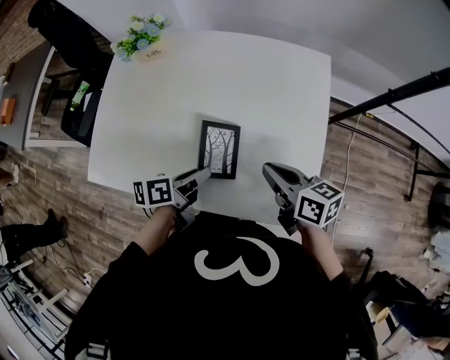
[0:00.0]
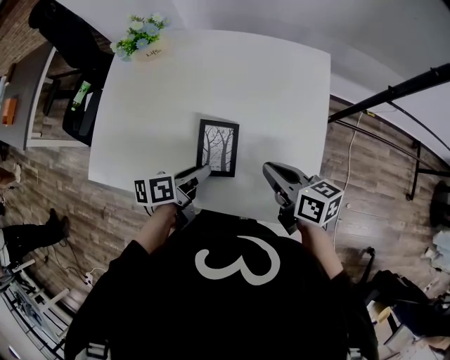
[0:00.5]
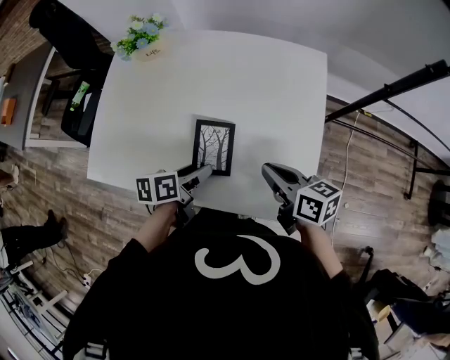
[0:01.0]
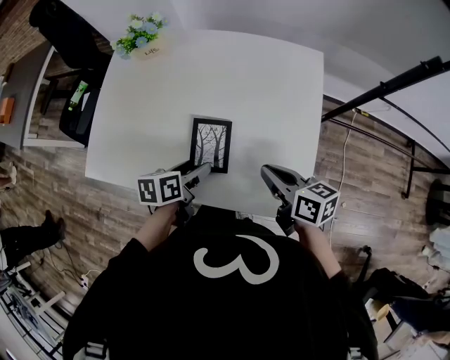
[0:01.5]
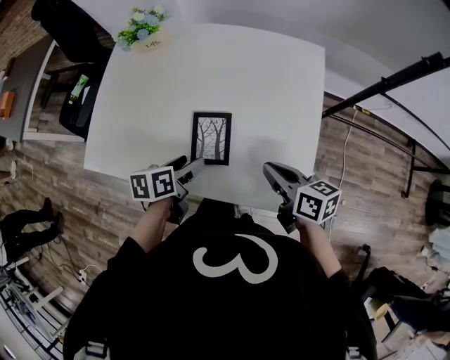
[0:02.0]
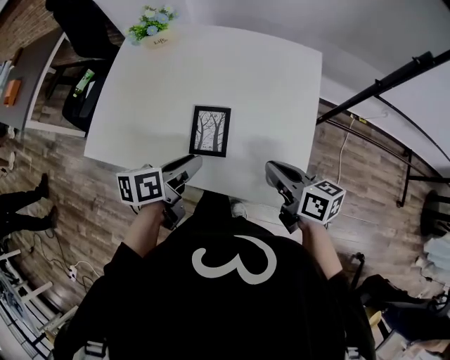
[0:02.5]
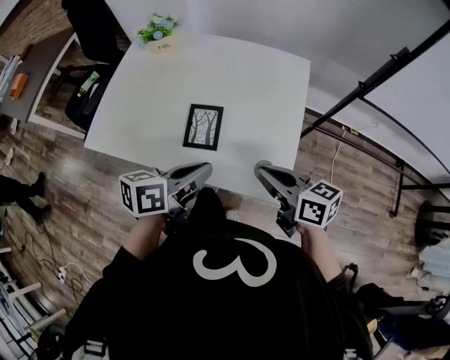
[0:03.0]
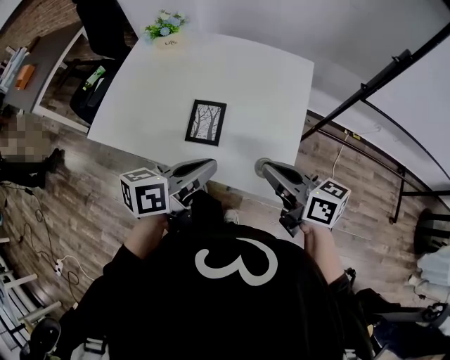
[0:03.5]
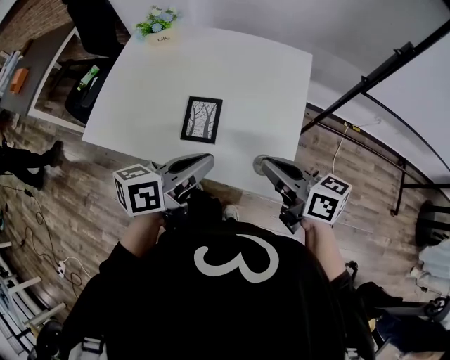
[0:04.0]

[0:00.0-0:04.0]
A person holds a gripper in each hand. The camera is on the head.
0:00.0 to 0:02.0: The left gripper opens up.
0:02.0 to 0:04.0: The left gripper is displaced upward, to the right and backward by roughly 20 cm, turns by roughly 30 degrees, and closes; the right gripper is displaced upward and backward by some 10 cm.

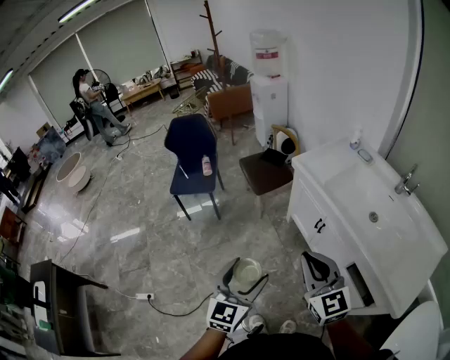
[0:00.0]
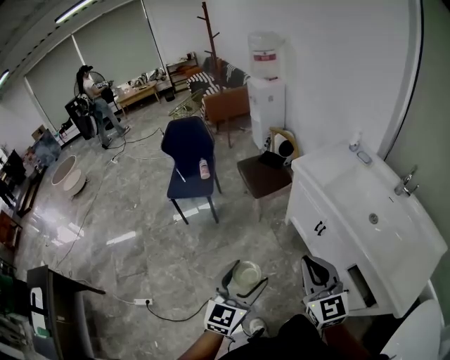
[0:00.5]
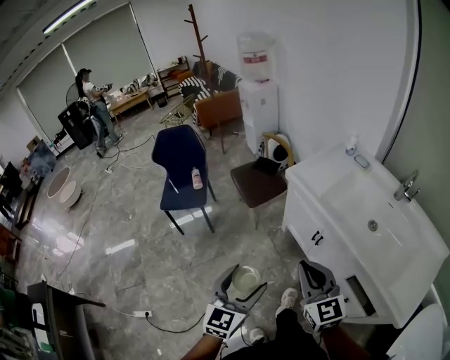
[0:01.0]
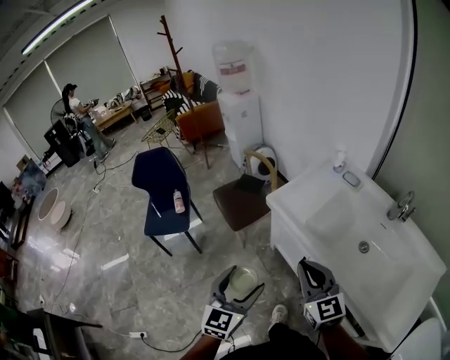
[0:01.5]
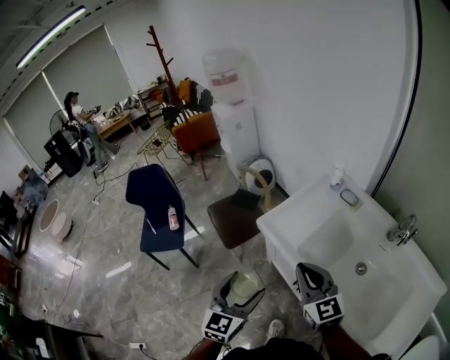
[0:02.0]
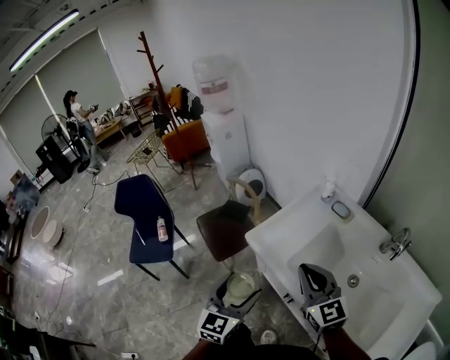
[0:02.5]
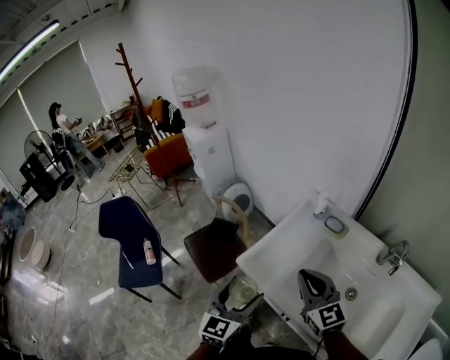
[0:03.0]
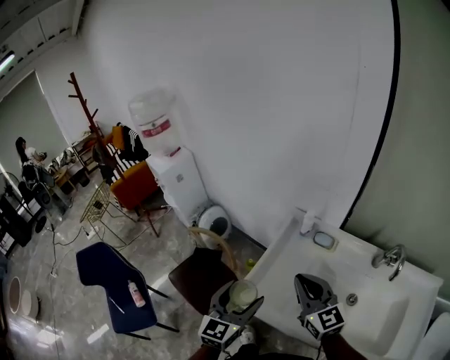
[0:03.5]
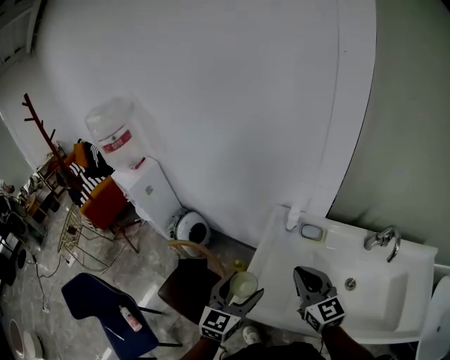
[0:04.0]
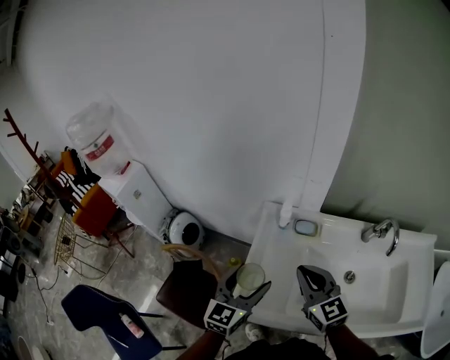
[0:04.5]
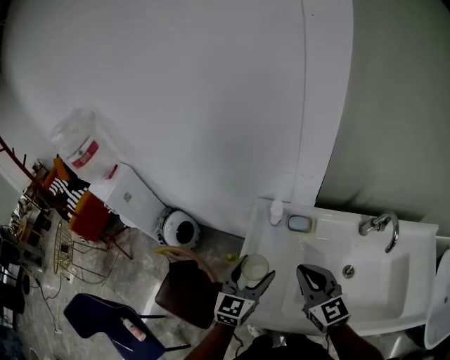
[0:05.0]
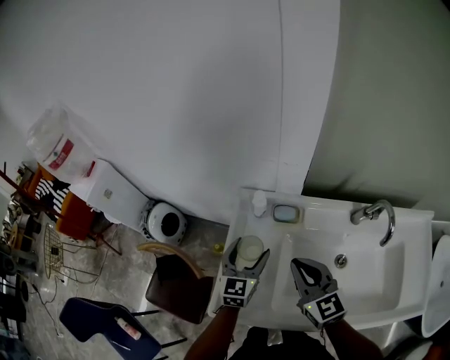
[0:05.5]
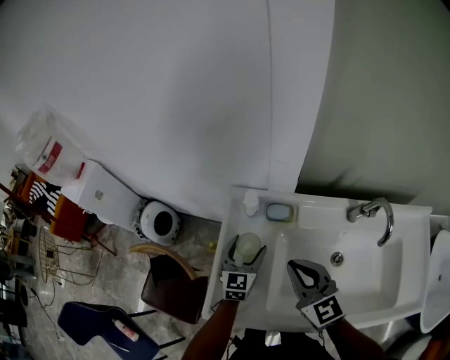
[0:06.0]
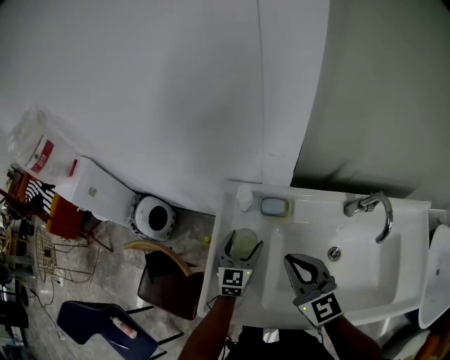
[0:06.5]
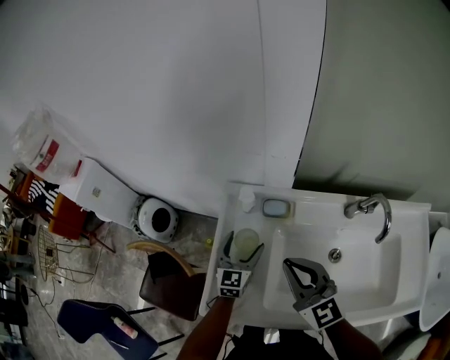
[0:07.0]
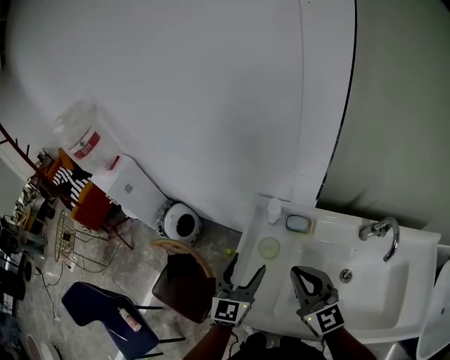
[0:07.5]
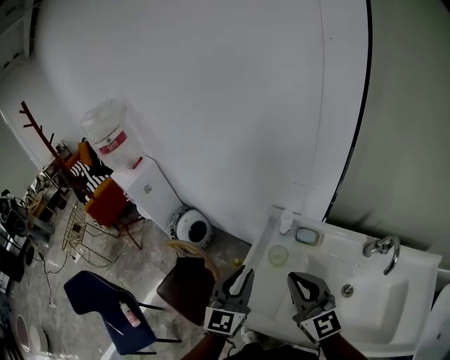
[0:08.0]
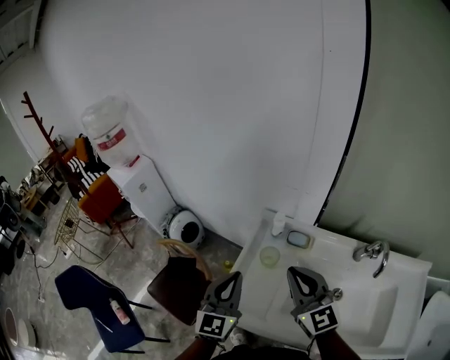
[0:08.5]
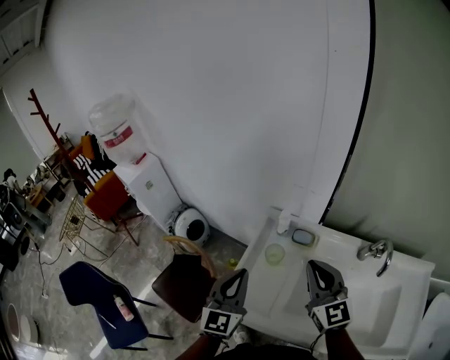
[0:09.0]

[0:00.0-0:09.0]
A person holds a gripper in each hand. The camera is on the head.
0:00.0 to 0:02.0: The right gripper is displaced forward and to the right by approximately 35 cm. Meanwhile the left gripper is displaced forward by some 30 cm.
0:02.0 to 0:04.5: The right gripper changes place by approximately 25 cm, and rotates approximately 30 degrees; the left gripper shifts by some 35 cm, and swivels approximately 40 degrees.
0:04.5 to 0:07.0: The left gripper moves downward, forward and to the right, about 20 cm, while the right gripper moves roughly 5 cm.
0:07.0 to 0:09.0: The right gripper moves upward, some 5 cm. The left gripper travels upward, backward and to the left by roughly 25 cm, changes its angle by some 20 degrees, and closes.

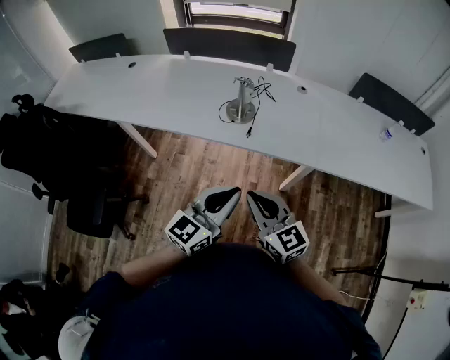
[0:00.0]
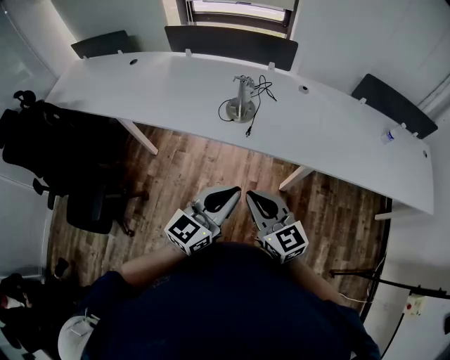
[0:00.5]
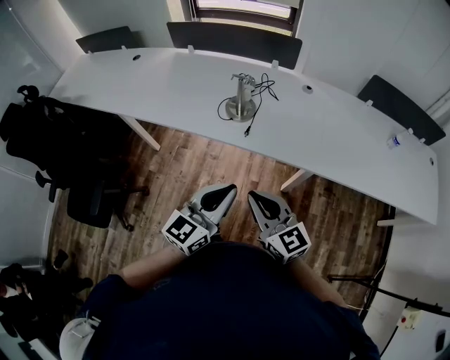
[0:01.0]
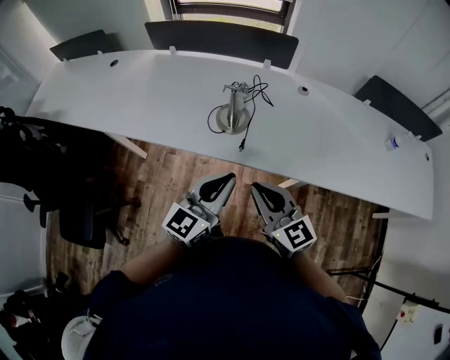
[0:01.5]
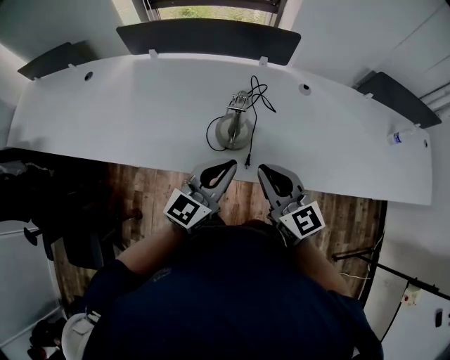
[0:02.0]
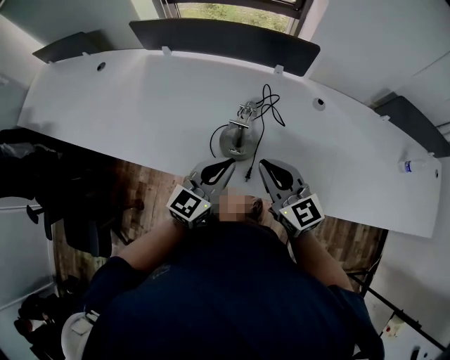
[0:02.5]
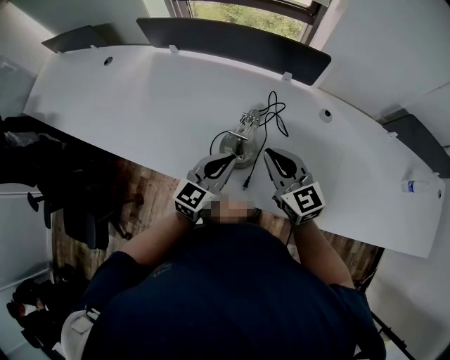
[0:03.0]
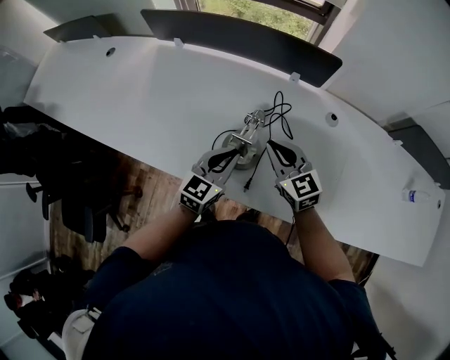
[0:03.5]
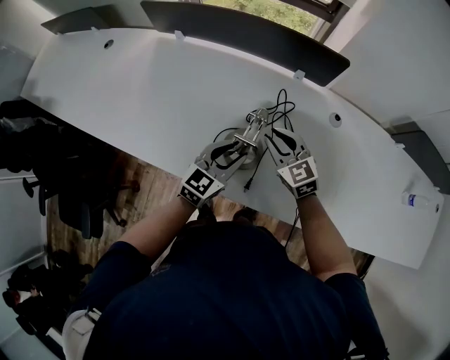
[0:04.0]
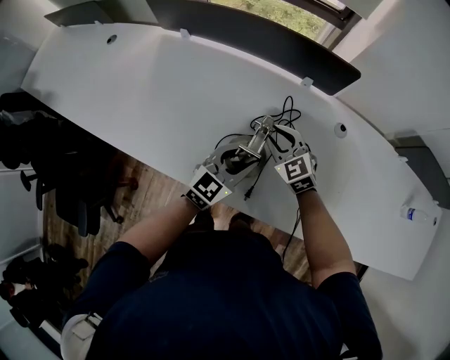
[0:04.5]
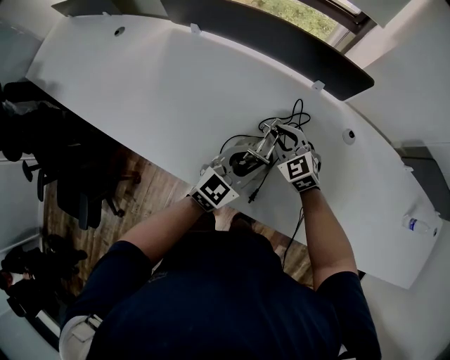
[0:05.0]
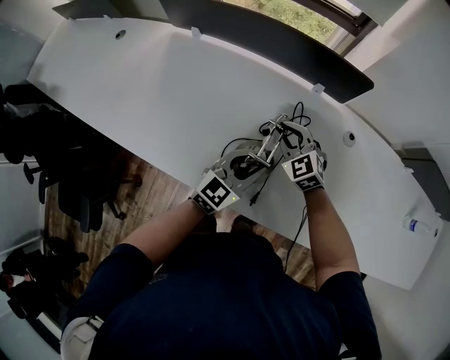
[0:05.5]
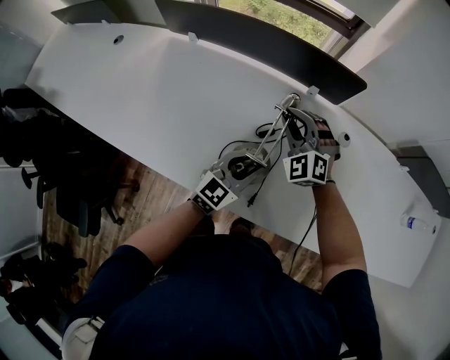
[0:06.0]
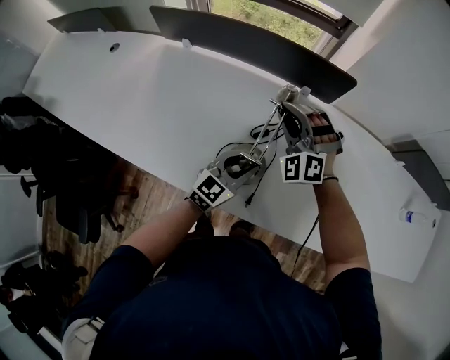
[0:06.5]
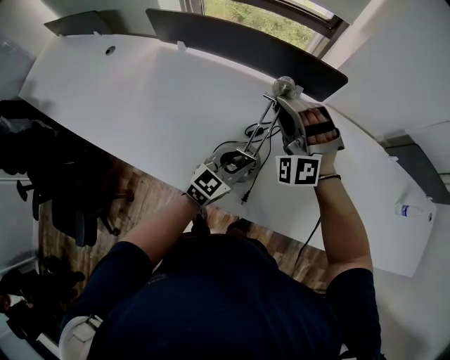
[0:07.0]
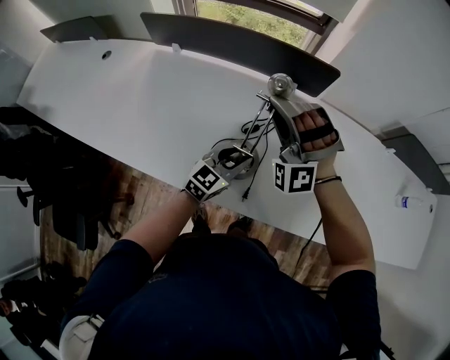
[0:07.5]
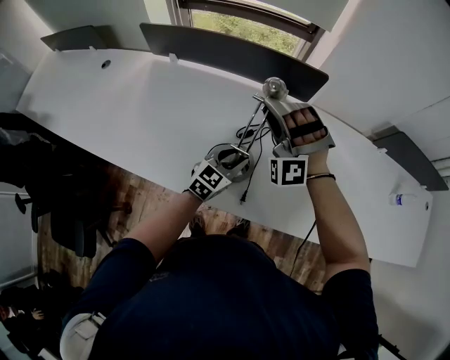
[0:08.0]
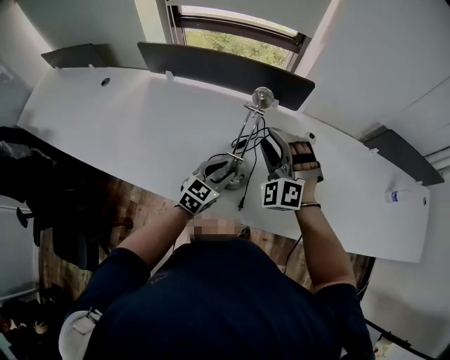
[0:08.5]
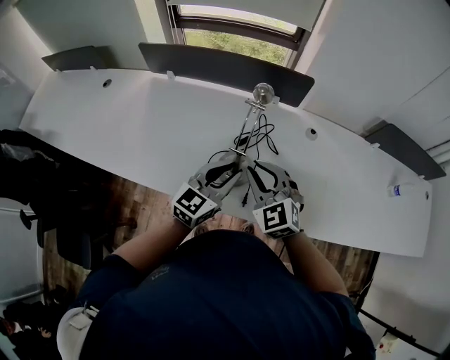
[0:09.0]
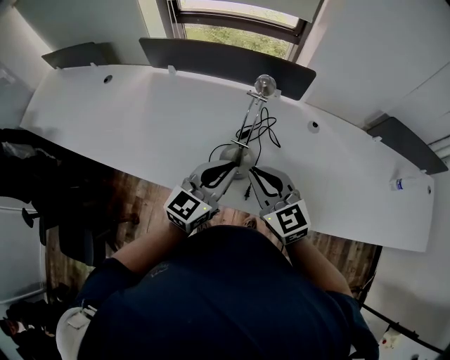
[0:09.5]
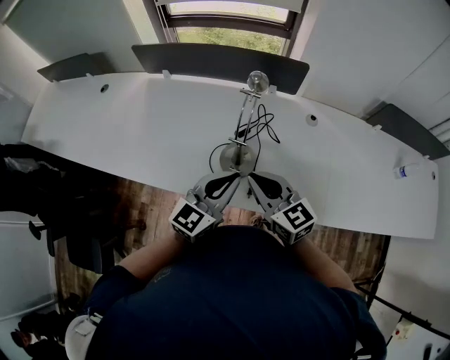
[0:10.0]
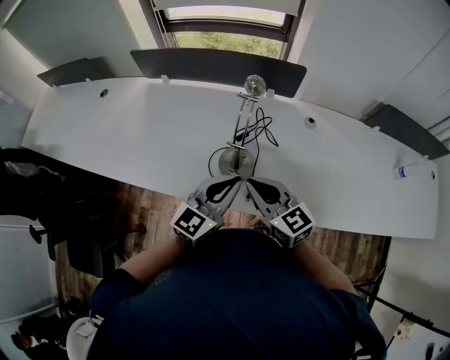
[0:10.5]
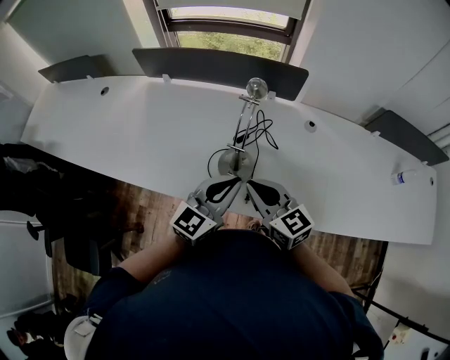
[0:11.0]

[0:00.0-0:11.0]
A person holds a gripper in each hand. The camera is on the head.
0:00.0 to 0:02.0: The grippers both shift forward by some 30 cm.
0:02.0 to 0:03.5: Both grippers travel together forward and downward, some 20 cm. The left gripper turns by roughly 20 degrees.
0:03.5 to 0:05.5: The right gripper heads forward and downward, covering about 15 cm, and swivels about 30 degrees. The left gripper opens.
0:05.5 to 0:07.5: The right gripper moves upward, roughly 20 cm, and rotates around the line of its fingers by some 60 degrees, counterclockwise from behind.
0:07.5 to 0:09.0: The right gripper heads backward, covering approximately 15 cm, and rolls clockwise, seen from behind, by approximately 60 degrees; the left gripper shifts about 15 cm upward and backward.
0:09.0 to 0:11.0: The right gripper shifts approximately 5 cm backward, and changes its angle by roughly 40 degrees. The left gripper shifts by about 5 cm, and closes up.

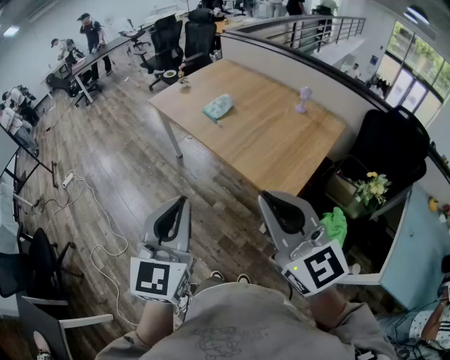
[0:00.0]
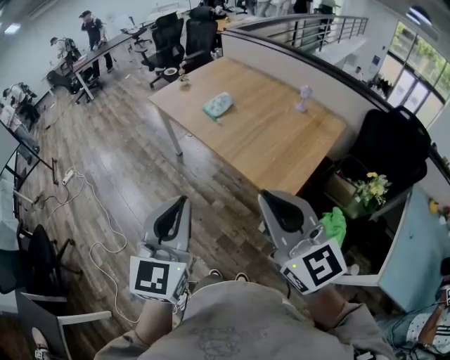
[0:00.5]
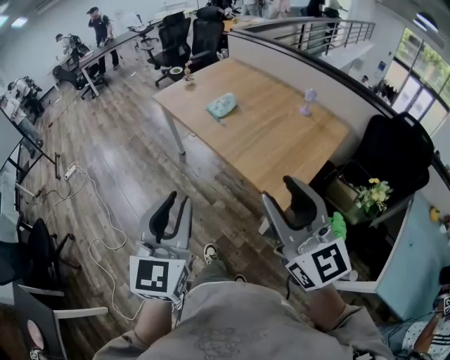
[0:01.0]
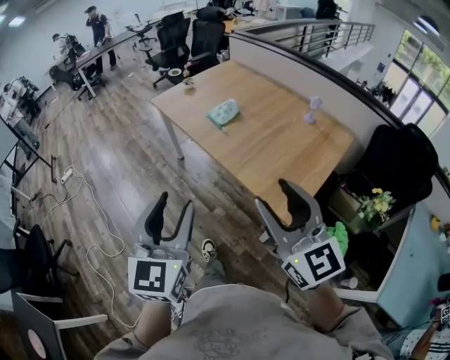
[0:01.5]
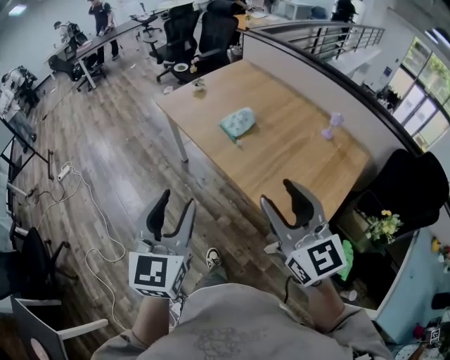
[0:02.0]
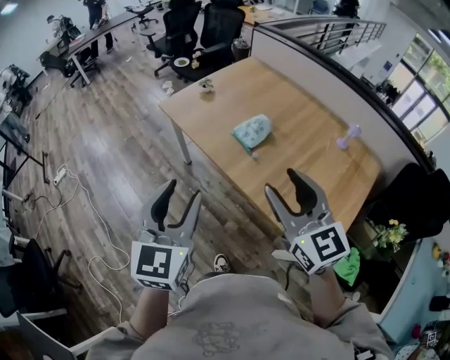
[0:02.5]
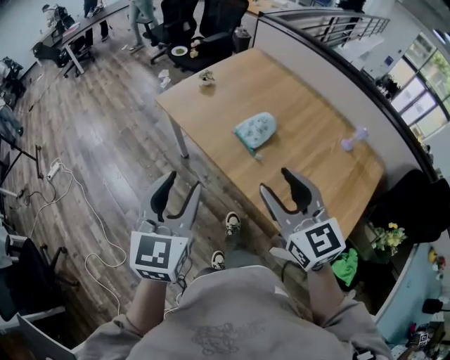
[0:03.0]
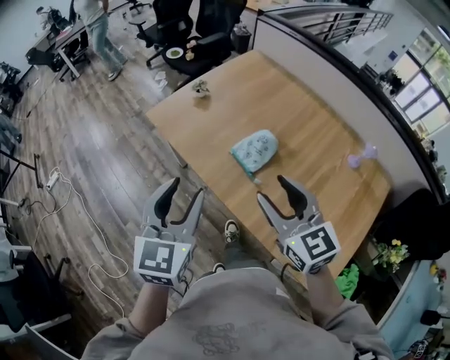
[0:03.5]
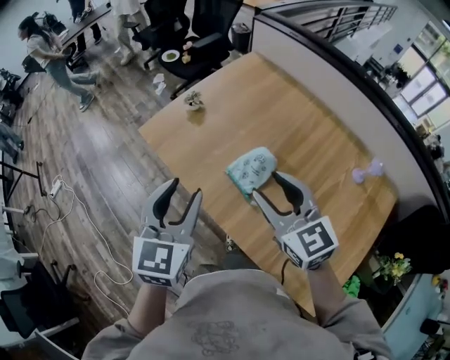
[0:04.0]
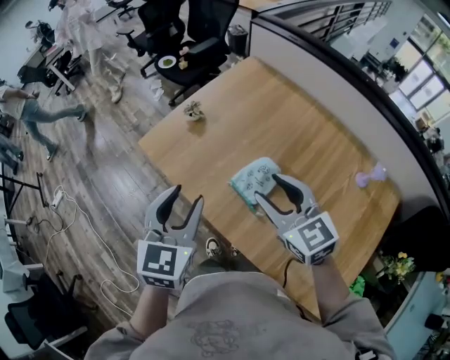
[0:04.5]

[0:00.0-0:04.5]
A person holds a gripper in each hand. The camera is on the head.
0:00.0 to 0:02.0: Both grippers move forward, roughly 25 cm. The left gripper opens up. Meanwhile the right gripper opens.
0:02.0 to 0:04.5: Both grippers are carried forward, some 50 cm. The right gripper turns by some 20 degrees.
